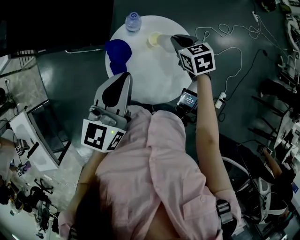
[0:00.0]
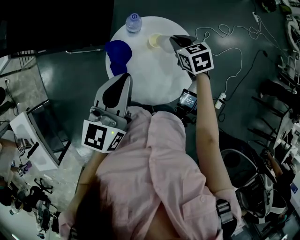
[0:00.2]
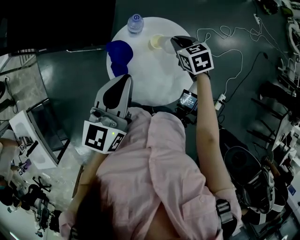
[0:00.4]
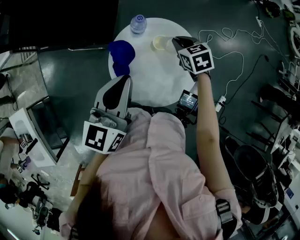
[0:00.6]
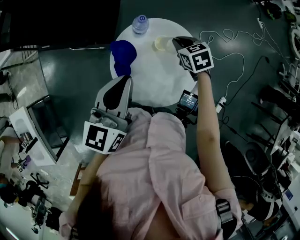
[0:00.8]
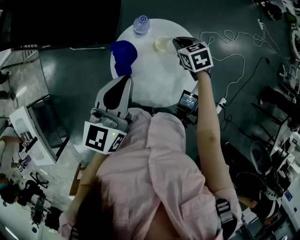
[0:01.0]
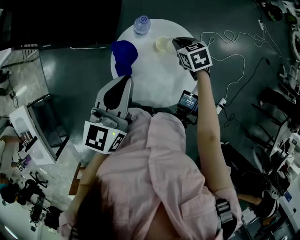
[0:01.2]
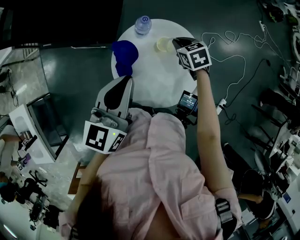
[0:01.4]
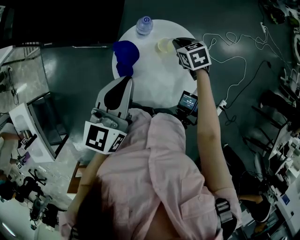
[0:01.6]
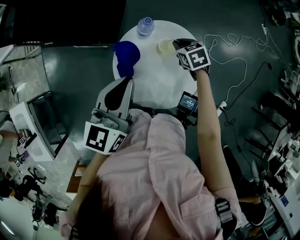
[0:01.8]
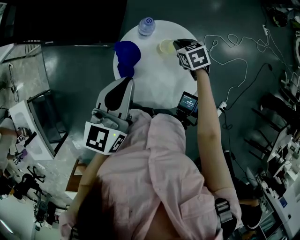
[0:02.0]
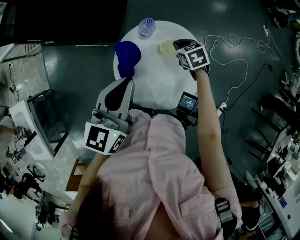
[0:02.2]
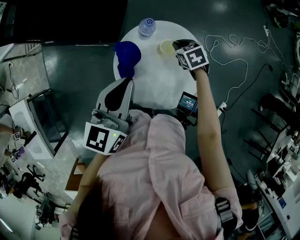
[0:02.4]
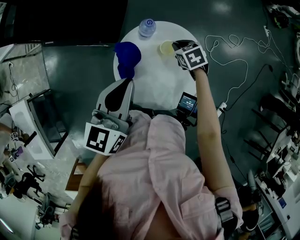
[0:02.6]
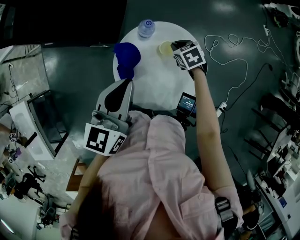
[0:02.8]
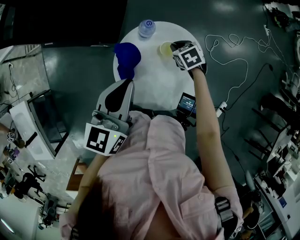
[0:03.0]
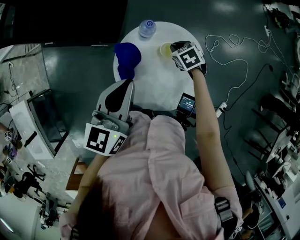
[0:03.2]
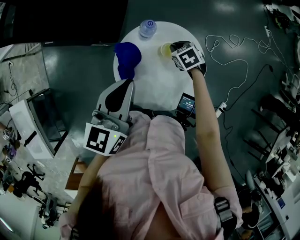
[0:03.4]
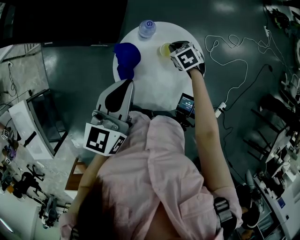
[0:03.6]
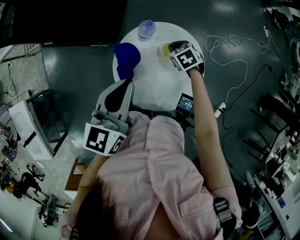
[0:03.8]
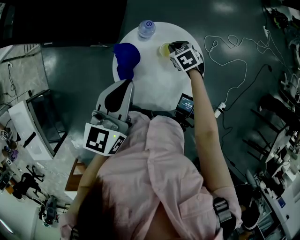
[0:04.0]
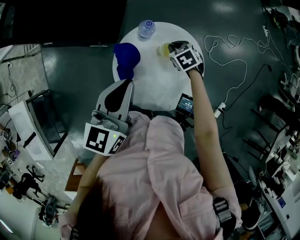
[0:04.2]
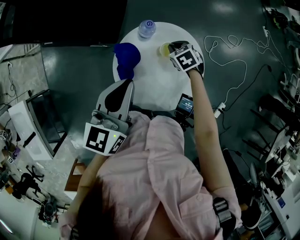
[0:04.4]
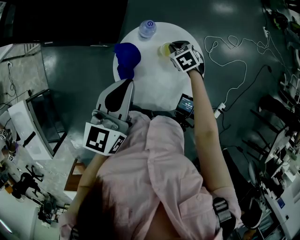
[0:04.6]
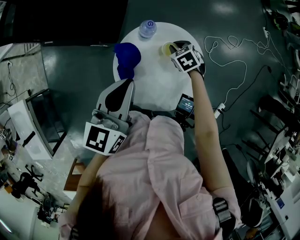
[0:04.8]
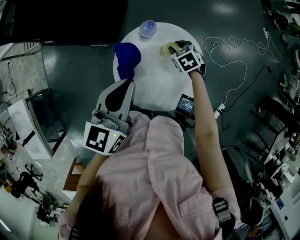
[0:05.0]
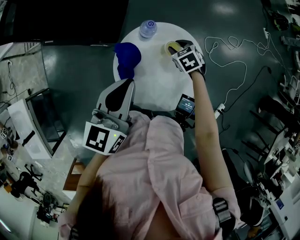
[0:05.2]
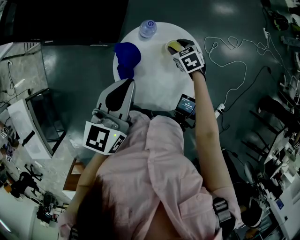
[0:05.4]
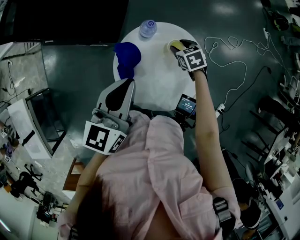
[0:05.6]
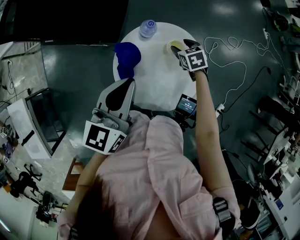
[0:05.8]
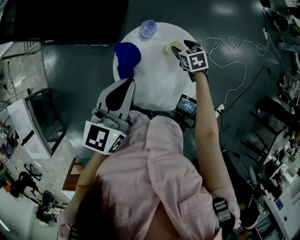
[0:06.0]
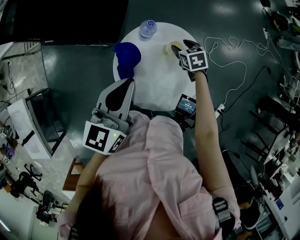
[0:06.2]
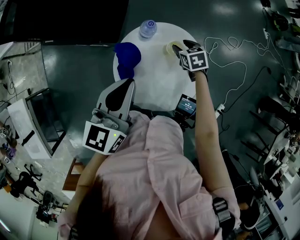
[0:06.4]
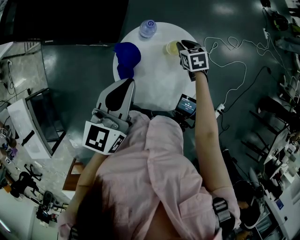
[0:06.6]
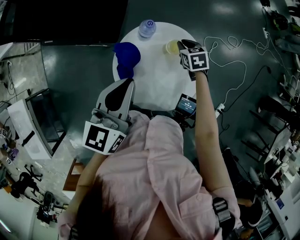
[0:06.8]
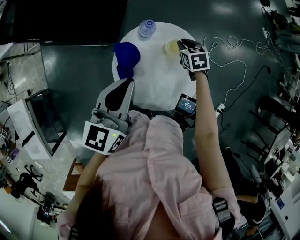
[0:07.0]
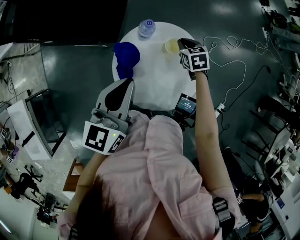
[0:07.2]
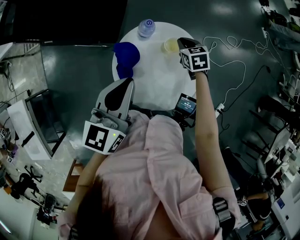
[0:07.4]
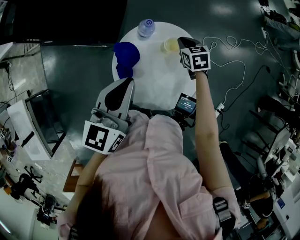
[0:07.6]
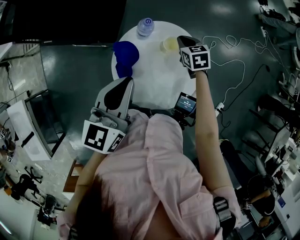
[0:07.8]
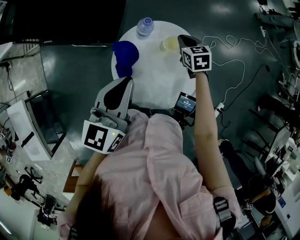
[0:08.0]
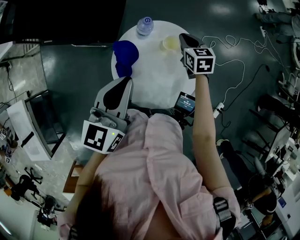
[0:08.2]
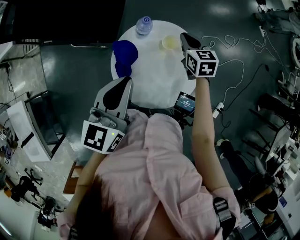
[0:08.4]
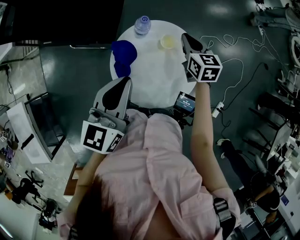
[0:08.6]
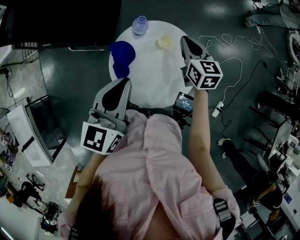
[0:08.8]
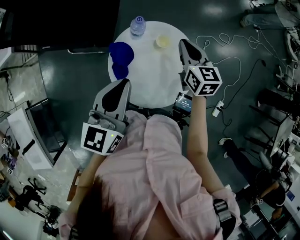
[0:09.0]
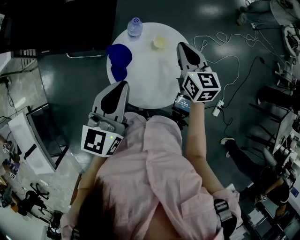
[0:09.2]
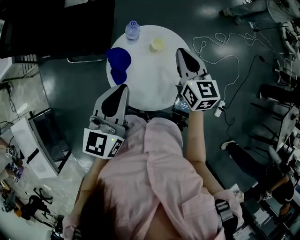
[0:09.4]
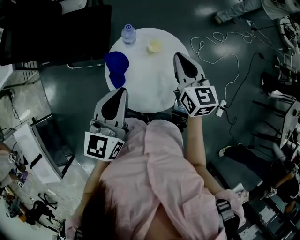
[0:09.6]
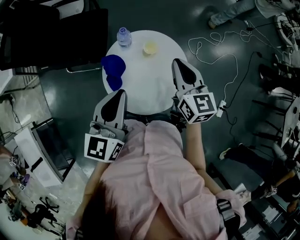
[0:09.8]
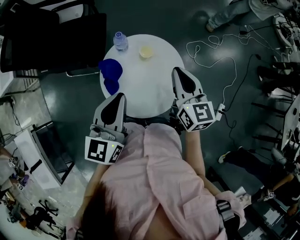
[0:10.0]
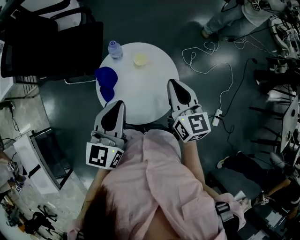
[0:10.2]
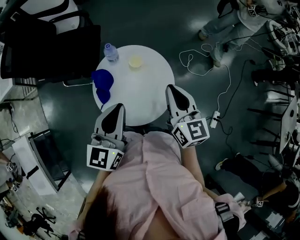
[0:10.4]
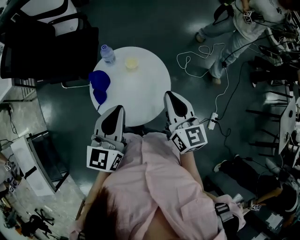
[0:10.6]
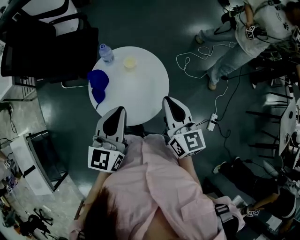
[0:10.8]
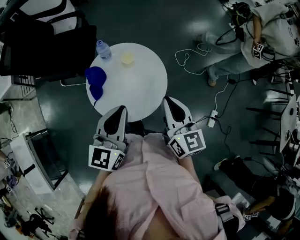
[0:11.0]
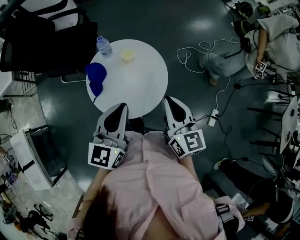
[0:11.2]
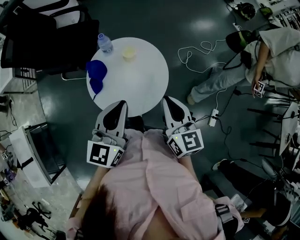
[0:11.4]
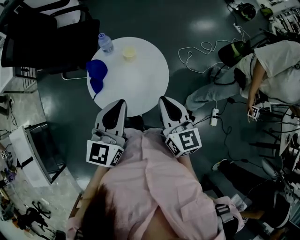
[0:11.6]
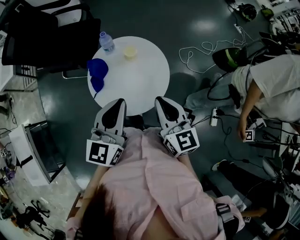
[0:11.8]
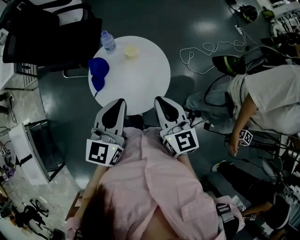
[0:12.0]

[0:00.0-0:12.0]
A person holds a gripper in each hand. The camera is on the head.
0:00.0 to 0:01.6: The right gripper moves downward, some 5 cm.
0:01.6 to 0:04.4: The grippers make only small movements.
0:04.4 to 0:06.0: The right gripper opens.
0:06.0 to 0:07.6: The right gripper closes its fingers.
0:07.6 to 0:09.0: The right gripper travels upward and backward by roughly 15 cm, and turns by about 30 degrees.
0:09.0 to 0:10.4: The left gripper shifts some 10 cm to the right. The right gripper is displaced backward, upward and to the right by about 20 cm.
0:10.4 to 0:12.0: The left gripper moves roughly 5 cm. Meanwhile the right gripper heads backward, covering roughly 10 cm.

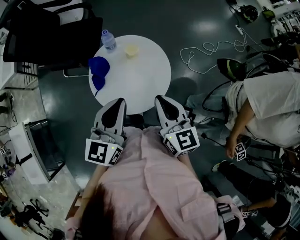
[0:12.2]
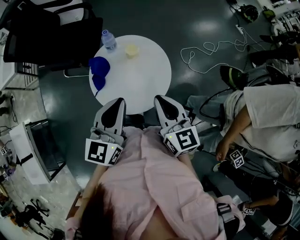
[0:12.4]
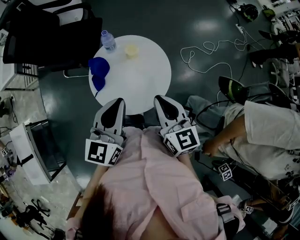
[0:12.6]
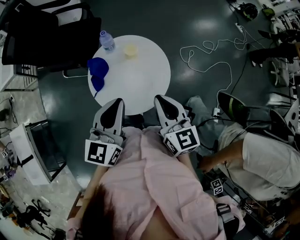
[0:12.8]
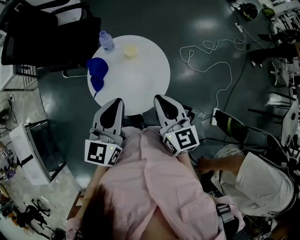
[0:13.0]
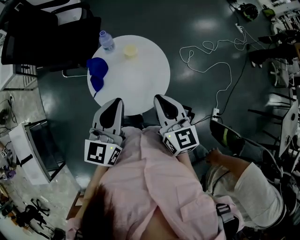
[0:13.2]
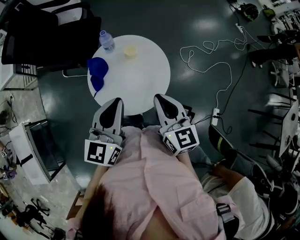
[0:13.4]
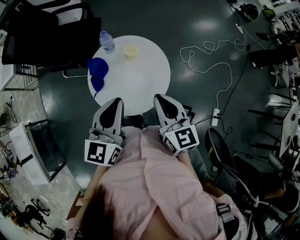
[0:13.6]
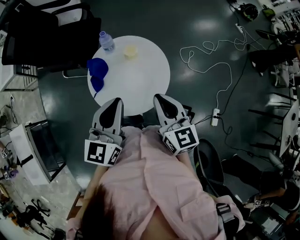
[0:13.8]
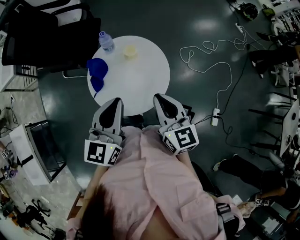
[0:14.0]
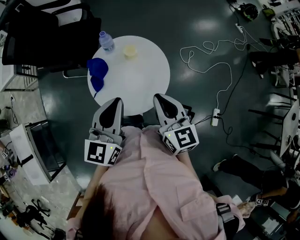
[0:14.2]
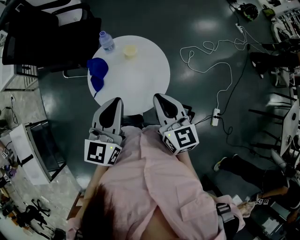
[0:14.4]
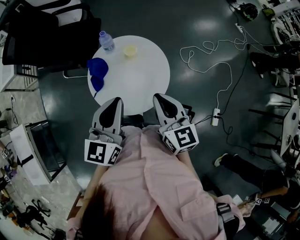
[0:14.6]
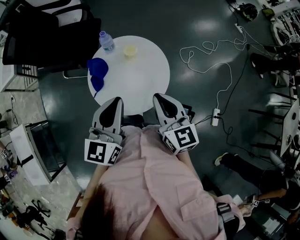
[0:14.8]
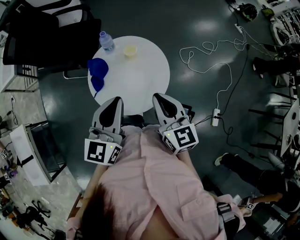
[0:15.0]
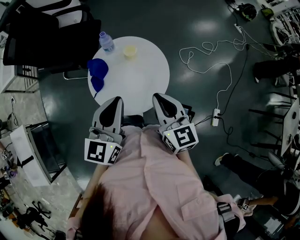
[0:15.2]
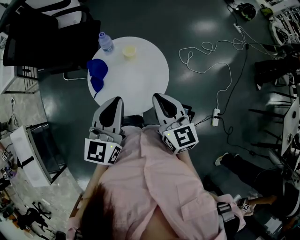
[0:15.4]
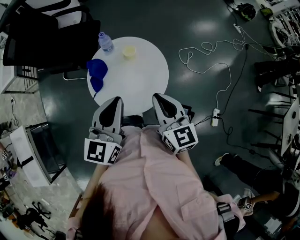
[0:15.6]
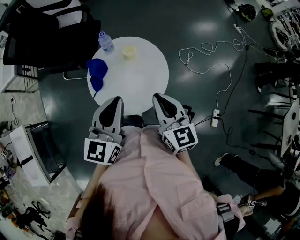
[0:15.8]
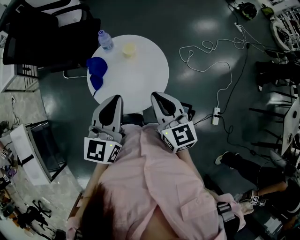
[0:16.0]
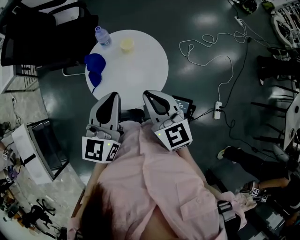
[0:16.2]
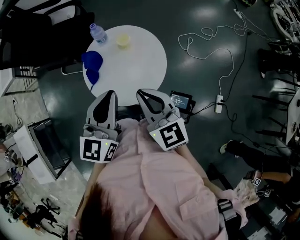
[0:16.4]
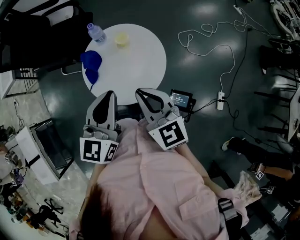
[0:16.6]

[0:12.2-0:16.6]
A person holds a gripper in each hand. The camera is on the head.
0:12.2 to 0:15.2: Both grippers stay about where they are.
0:15.2 to 0:16.6: The grippers stay close to where they were, moving slightly.

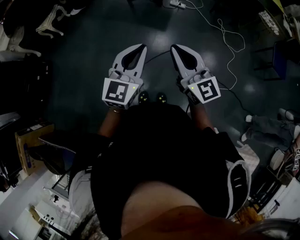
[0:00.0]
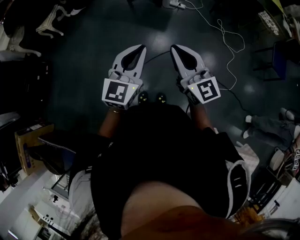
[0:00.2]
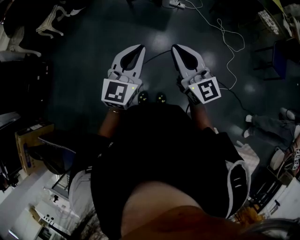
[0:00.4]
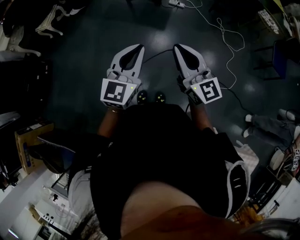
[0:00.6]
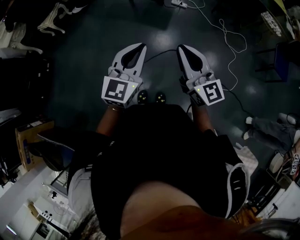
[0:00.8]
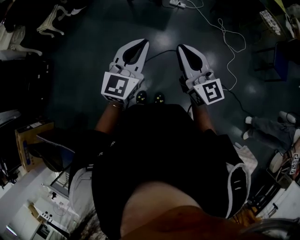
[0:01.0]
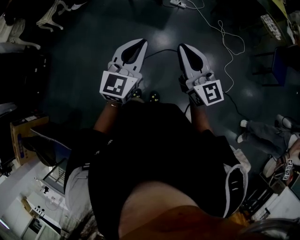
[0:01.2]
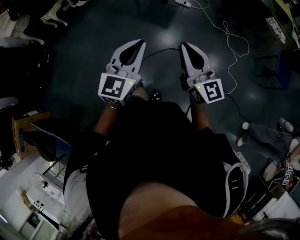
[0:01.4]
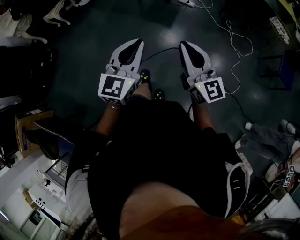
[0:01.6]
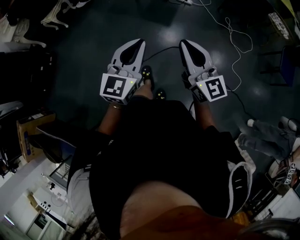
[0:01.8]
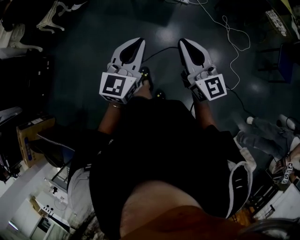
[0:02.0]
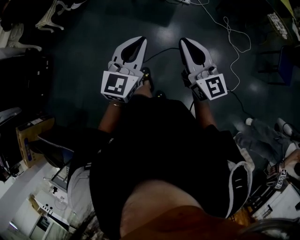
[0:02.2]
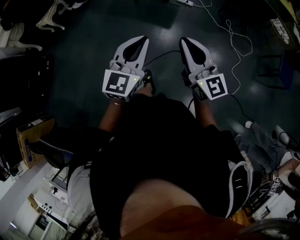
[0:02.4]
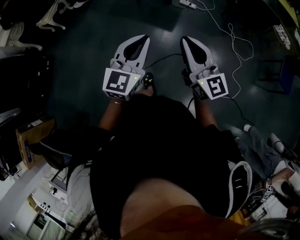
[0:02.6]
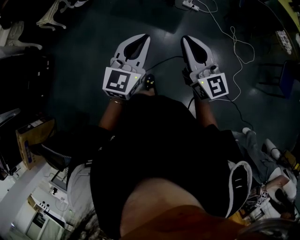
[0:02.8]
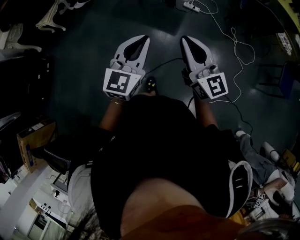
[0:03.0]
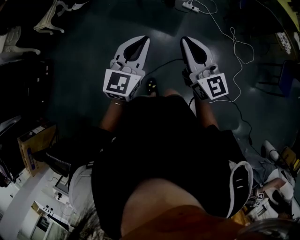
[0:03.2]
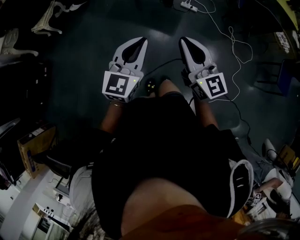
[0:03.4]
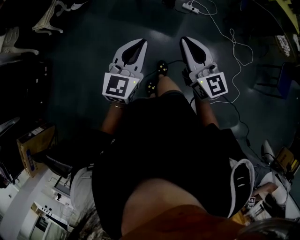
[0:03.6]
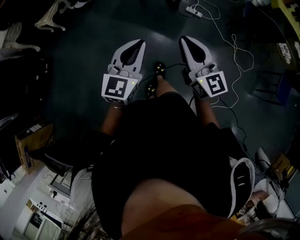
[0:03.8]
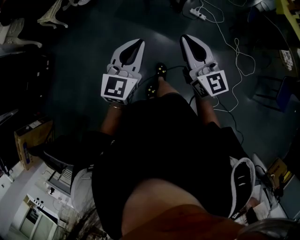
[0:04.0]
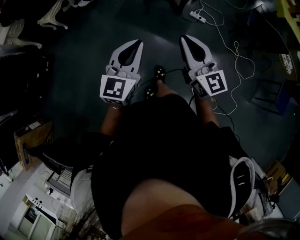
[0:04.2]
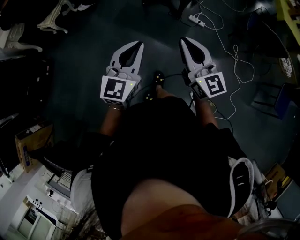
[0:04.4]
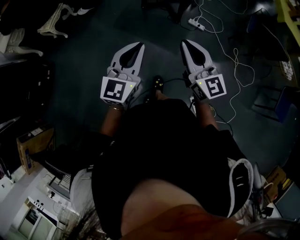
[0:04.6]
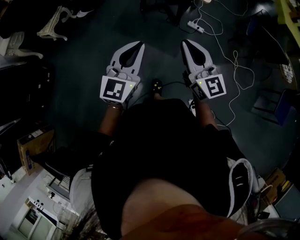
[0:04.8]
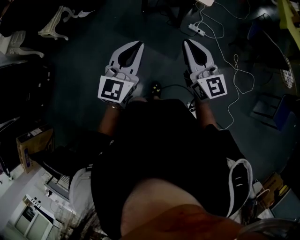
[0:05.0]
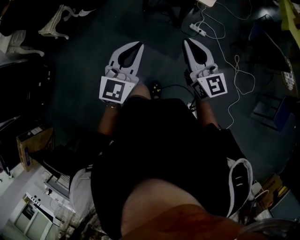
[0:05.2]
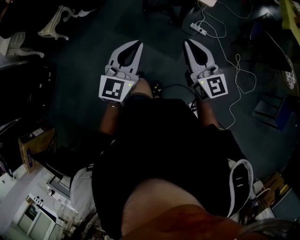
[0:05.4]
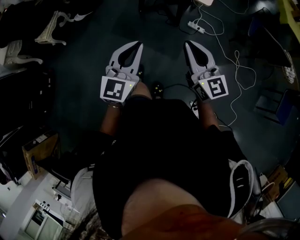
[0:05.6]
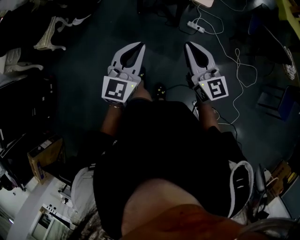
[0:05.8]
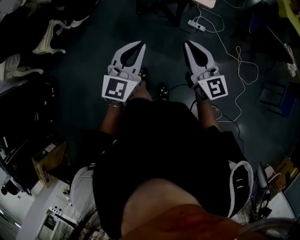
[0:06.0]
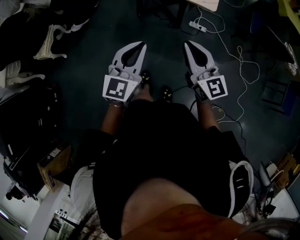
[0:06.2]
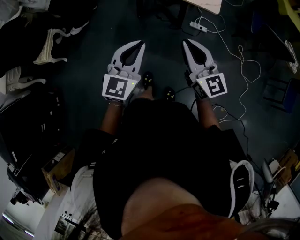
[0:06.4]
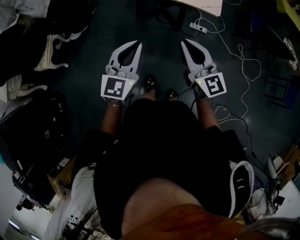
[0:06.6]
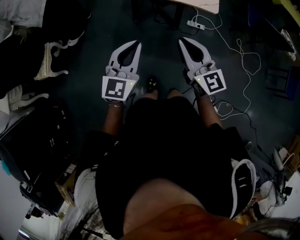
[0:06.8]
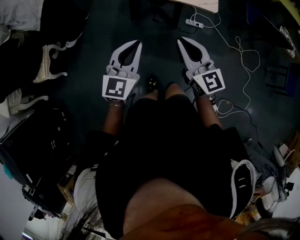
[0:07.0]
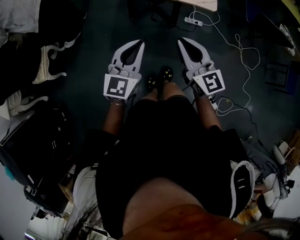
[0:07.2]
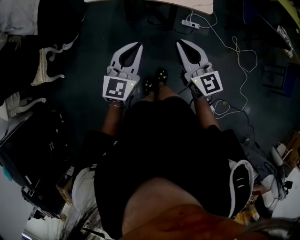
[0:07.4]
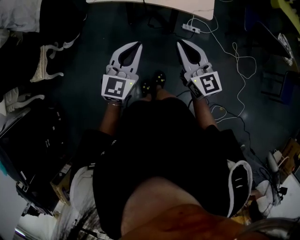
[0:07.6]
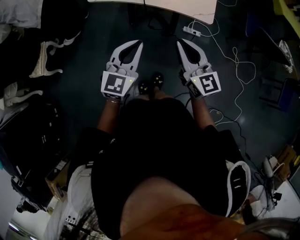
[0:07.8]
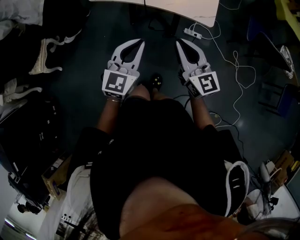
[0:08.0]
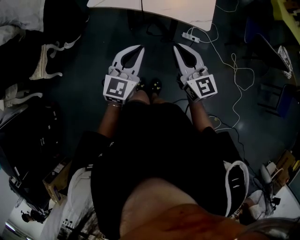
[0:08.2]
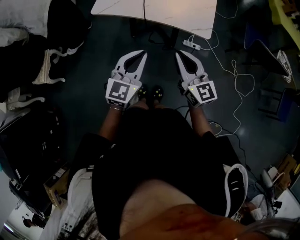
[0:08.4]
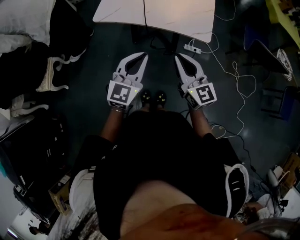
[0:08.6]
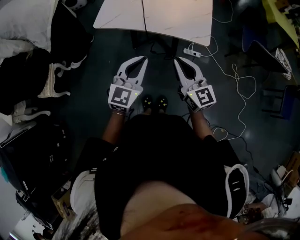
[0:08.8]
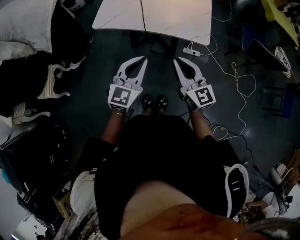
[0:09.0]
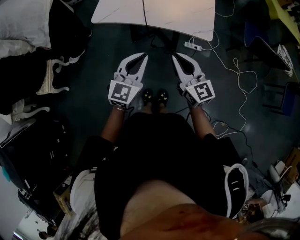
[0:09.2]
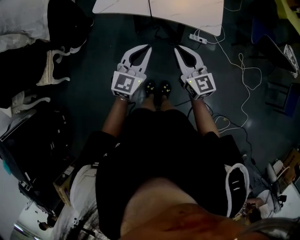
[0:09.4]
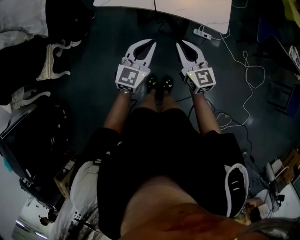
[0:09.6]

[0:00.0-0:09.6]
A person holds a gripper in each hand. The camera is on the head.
0:00.0 to 0:01.6: The right gripper is displaced to the right by approximately 10 cm.
0:01.6 to 0:03.2: The left gripper travels forward by roughly 20 cm; the right gripper shifts approximately 25 cm forward and to the left.
0:03.2 to 0:04.8: The grippers both shift forward by roughly 20 cm.
0:04.8 to 0:06.4: Both grippers move forward, roughly 20 cm.
0:06.4 to 0:08.0: Both grippers move forward, approximately 10 cm.
0:08.0 to 0:09.6: Both grippers travel together downward and forward, about 10 cm.
